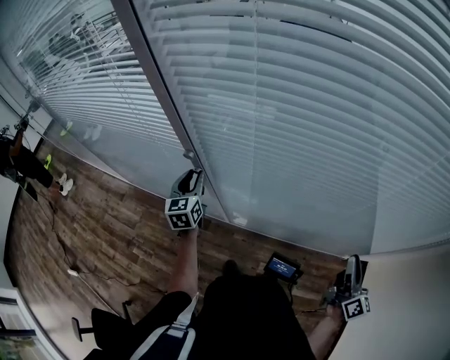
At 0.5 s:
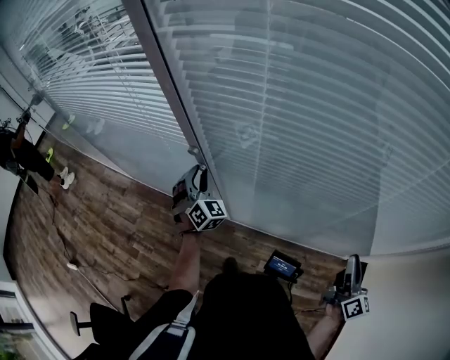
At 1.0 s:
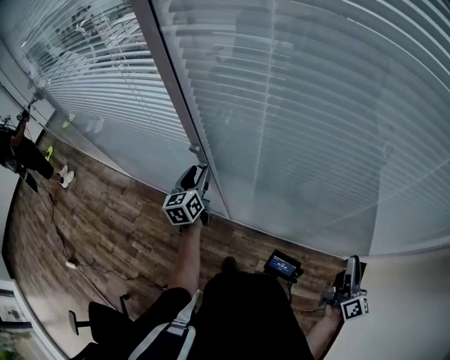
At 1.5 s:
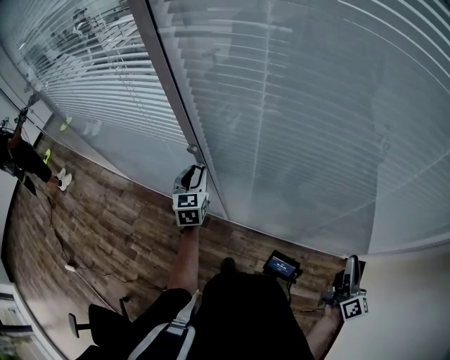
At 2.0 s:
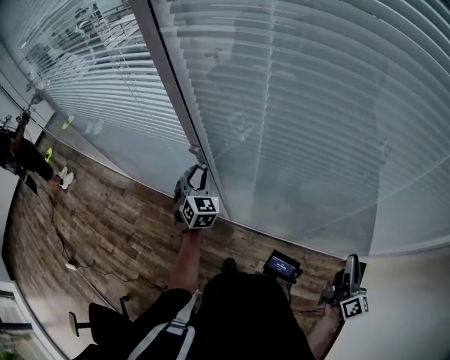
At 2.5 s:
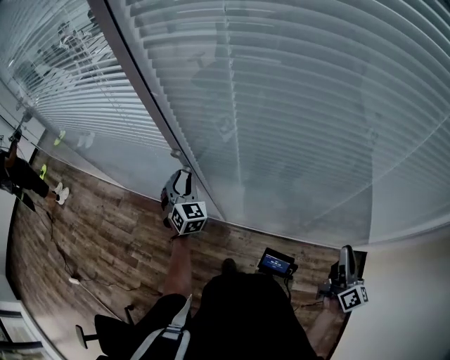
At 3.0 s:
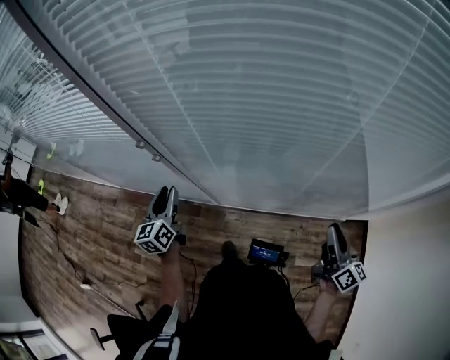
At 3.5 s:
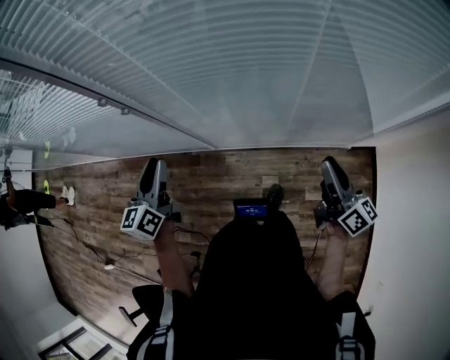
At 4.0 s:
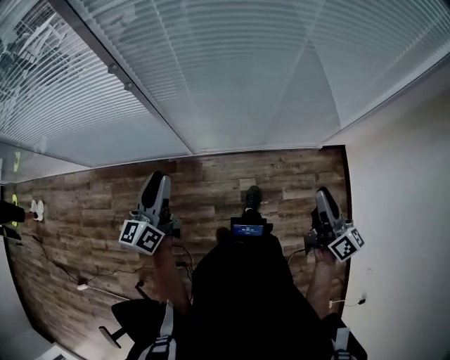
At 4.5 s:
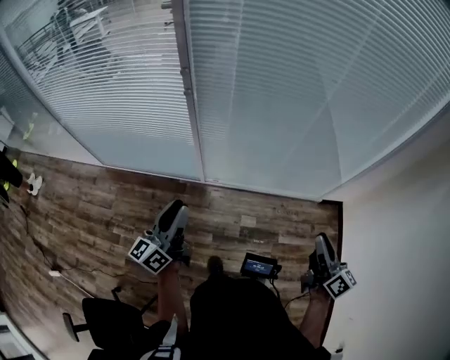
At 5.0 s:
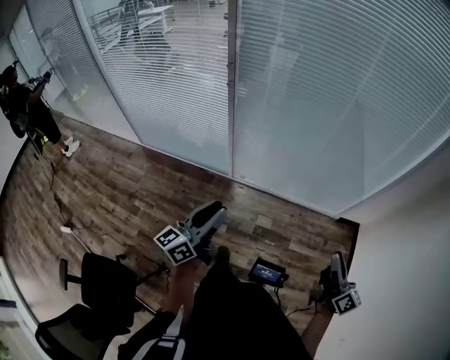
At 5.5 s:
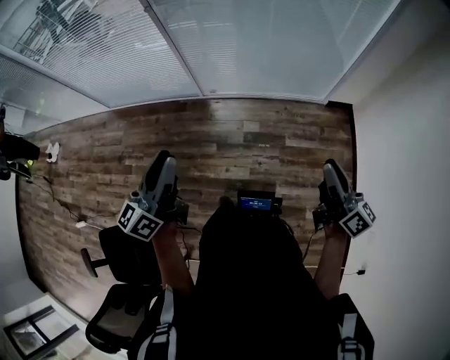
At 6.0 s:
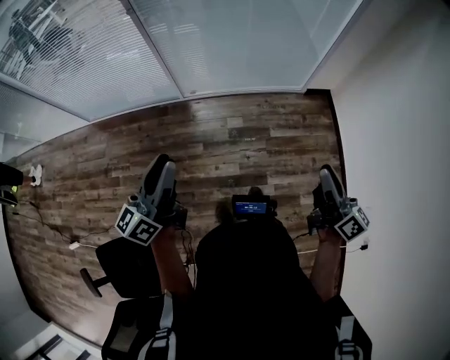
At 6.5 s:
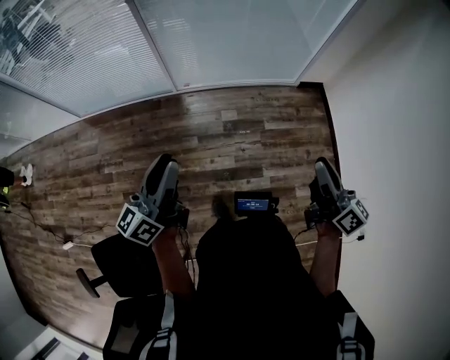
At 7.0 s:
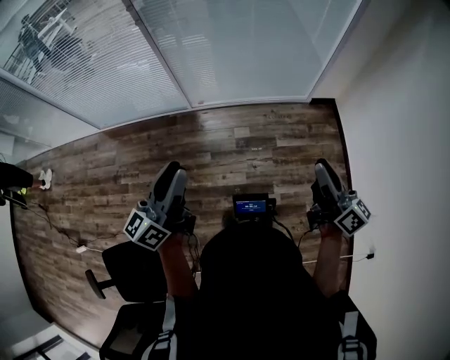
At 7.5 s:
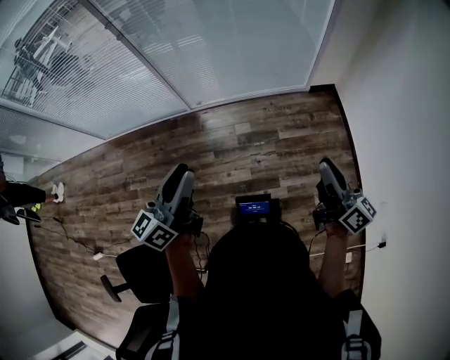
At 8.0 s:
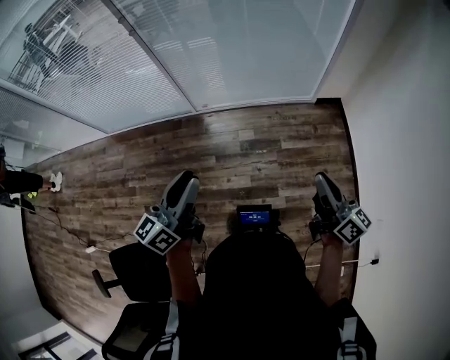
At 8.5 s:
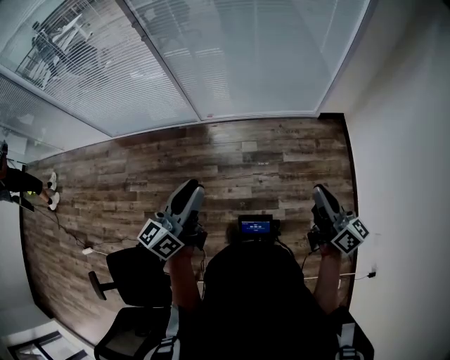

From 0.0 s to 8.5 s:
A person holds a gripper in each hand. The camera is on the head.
From 0.0 s to 2.0 s: The left gripper swivels about 40 degrees.
From 2.0 s to 4.0 s: The two grippers go roughly 25 cm backward. The left gripper rotates approximately 70 degrees.
From 4.0 s to 6.5 s: The two grippers go approximately 35 cm backward.
From 6.5 s to 8.5 s: The left gripper moves to the right, some 10 cm; the right gripper is displaced to the right by some 5 cm.

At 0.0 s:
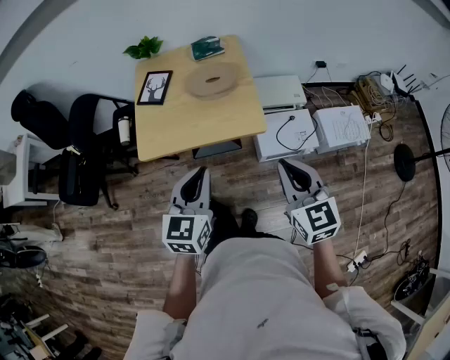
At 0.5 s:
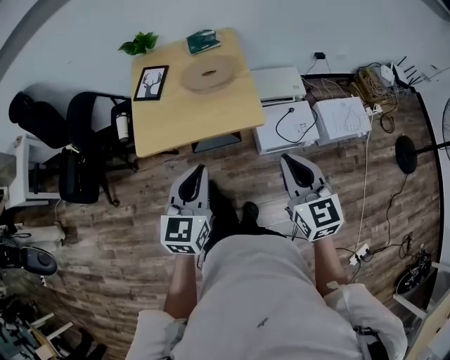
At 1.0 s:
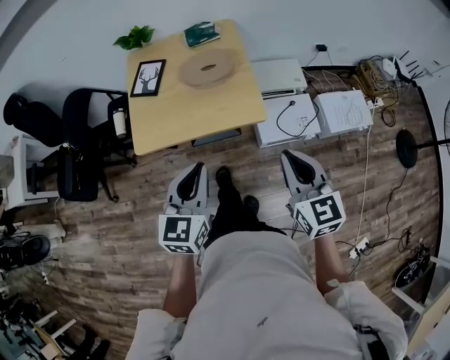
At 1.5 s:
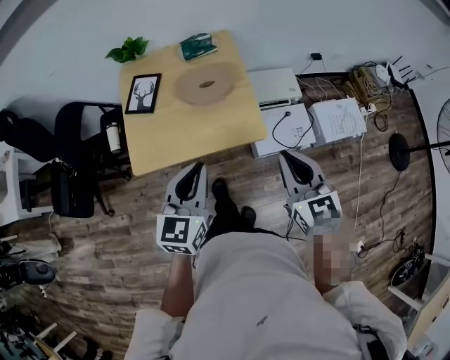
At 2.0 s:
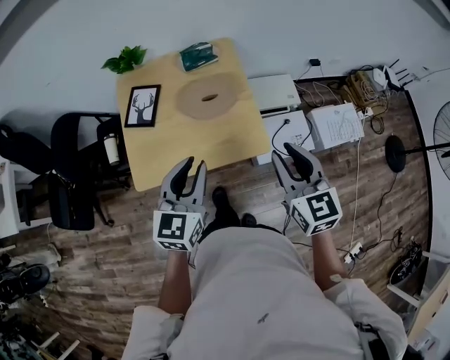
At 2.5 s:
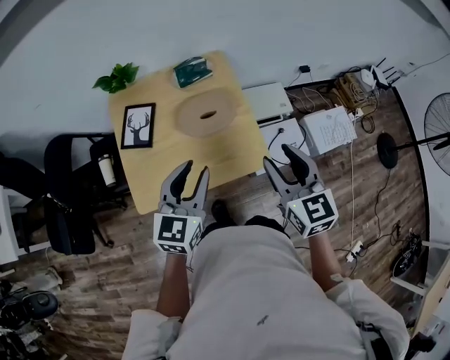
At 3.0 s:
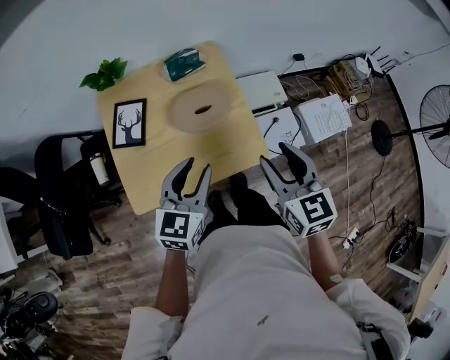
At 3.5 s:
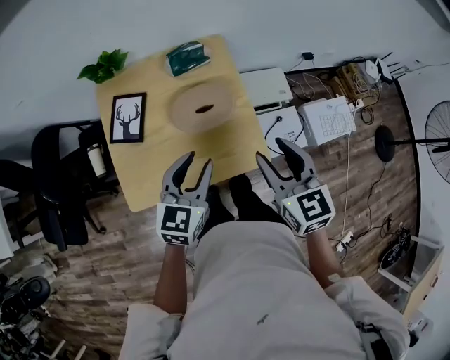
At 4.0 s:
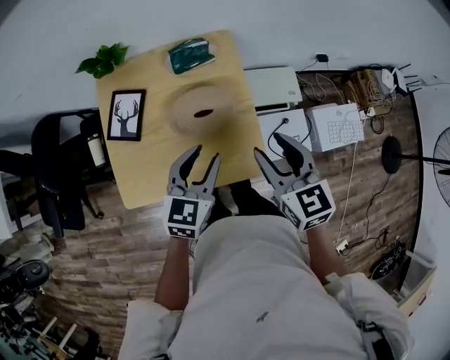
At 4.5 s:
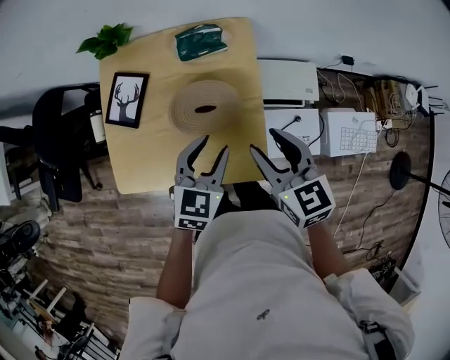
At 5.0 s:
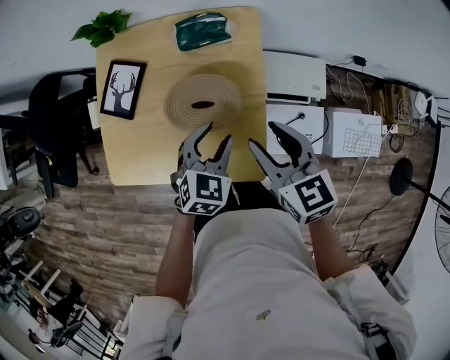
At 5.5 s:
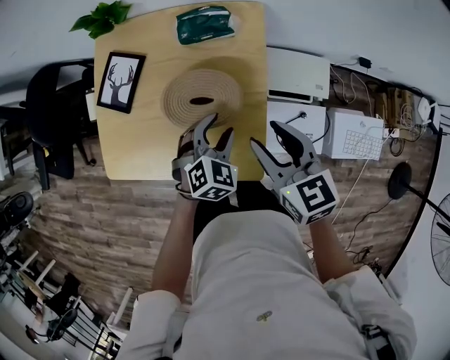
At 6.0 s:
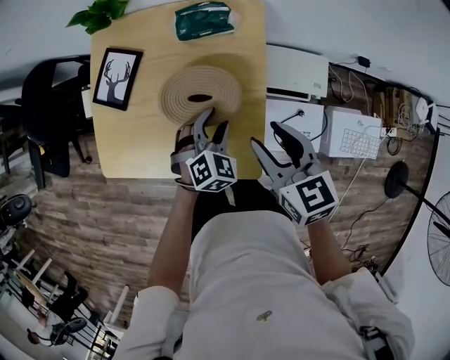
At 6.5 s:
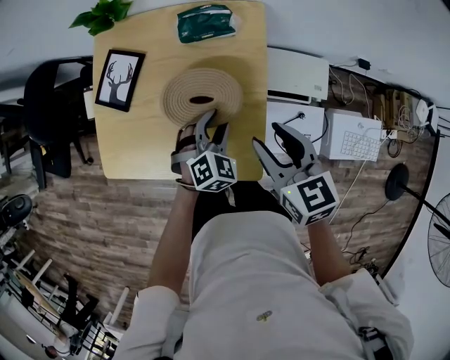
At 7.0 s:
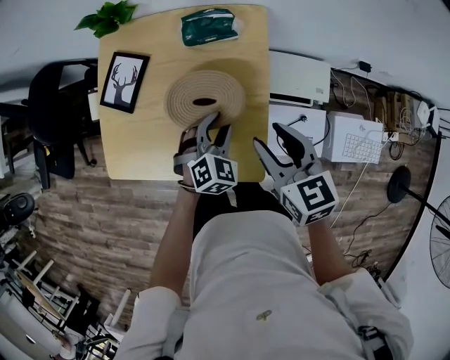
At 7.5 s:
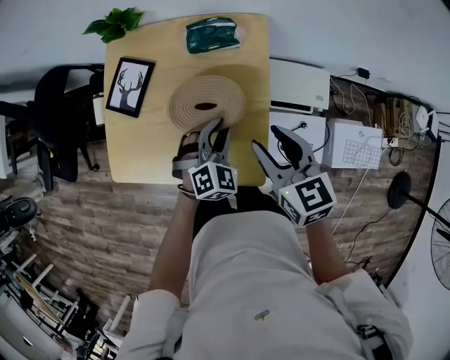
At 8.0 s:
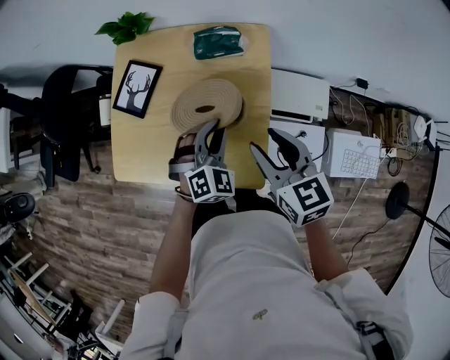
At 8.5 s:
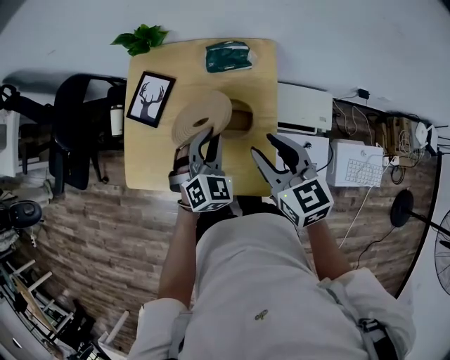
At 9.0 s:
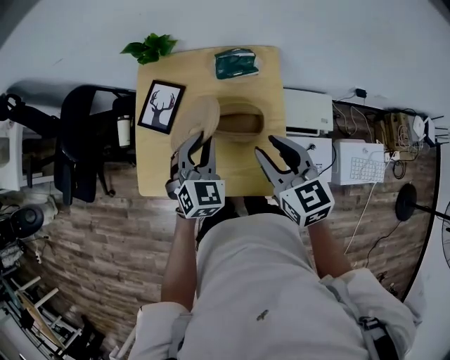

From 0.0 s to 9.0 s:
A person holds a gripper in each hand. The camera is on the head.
From 0.0 s to 2.0 s: The grippers both shift forward by about 20 cm. The right gripper opens its fingers.
From 2.0 s to 4.5 s: The two grippers go some 25 cm forward and downward. The left gripper opens; the right gripper rotates about 20 degrees, and opens its fingers.
From 4.5 s to 7.0 s: The left gripper shifts some 15 cm downward, and rotates about 30 degrees. The right gripper shifts by approximately 5 cm.
From 7.0 s to 9.0 s: The left gripper is displaced upward and to the left by about 20 cm. The right gripper moves upward and to the left, roughly 10 cm.

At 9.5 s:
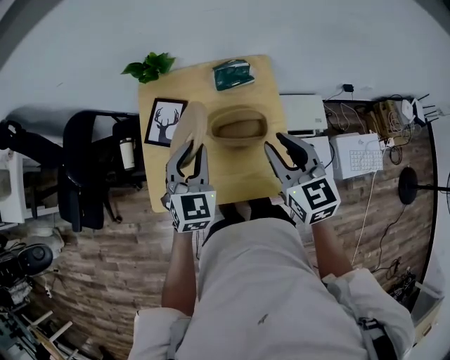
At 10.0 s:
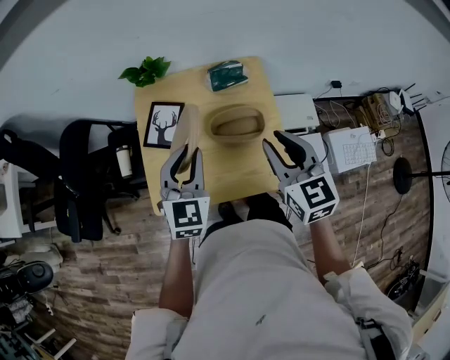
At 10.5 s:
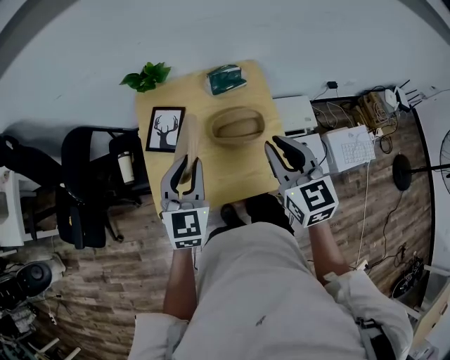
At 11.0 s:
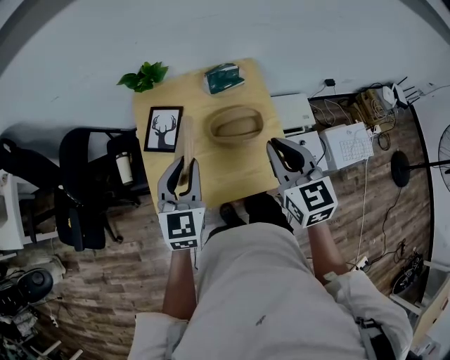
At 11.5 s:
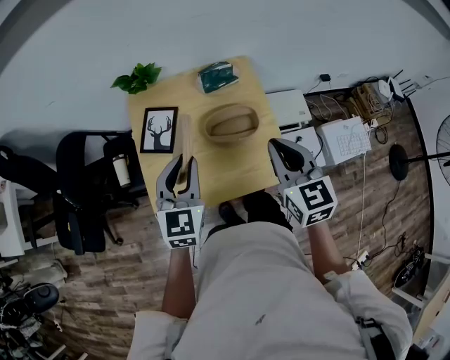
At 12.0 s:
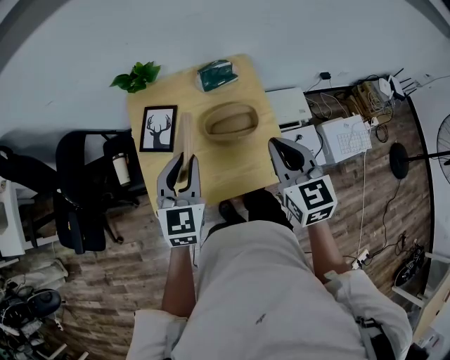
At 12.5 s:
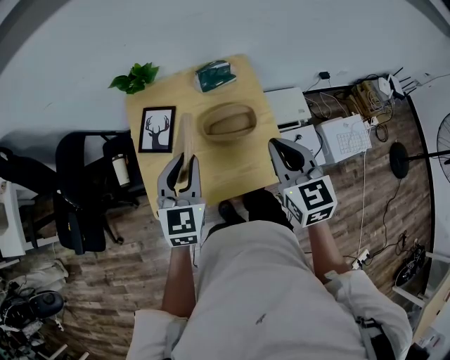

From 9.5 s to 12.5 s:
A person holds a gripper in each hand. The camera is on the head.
From 9.5 s to 11.0 s: The left gripper is displaced backward and to the left by some 5 cm; the right gripper ends up roughly 5 cm from where it was, and closes up.
From 11.0 s to 12.5 s: The grippers stay close to where they were, moving slightly.

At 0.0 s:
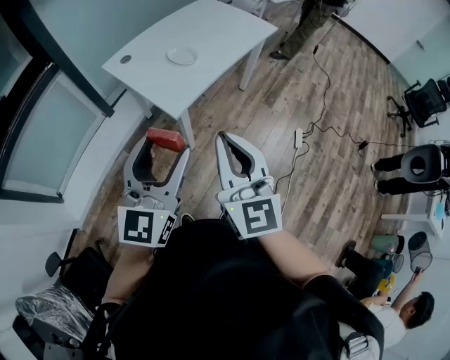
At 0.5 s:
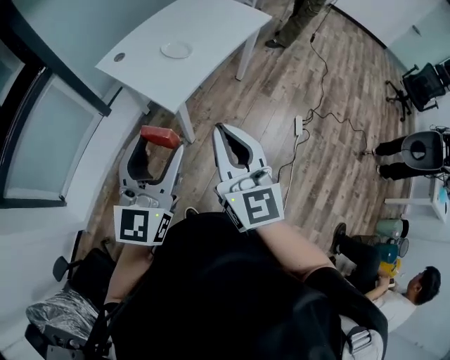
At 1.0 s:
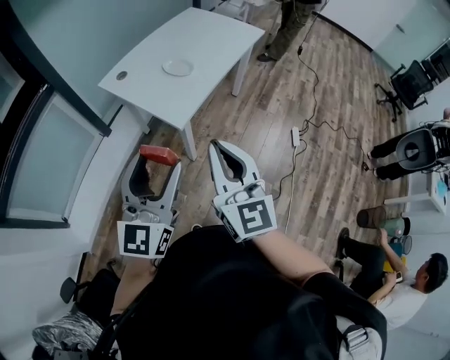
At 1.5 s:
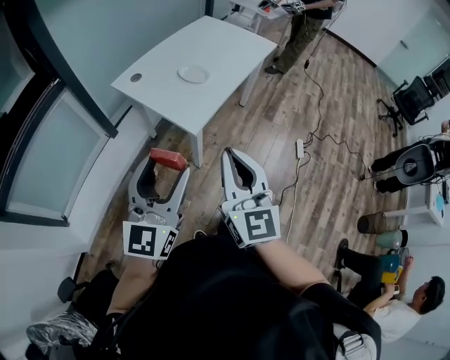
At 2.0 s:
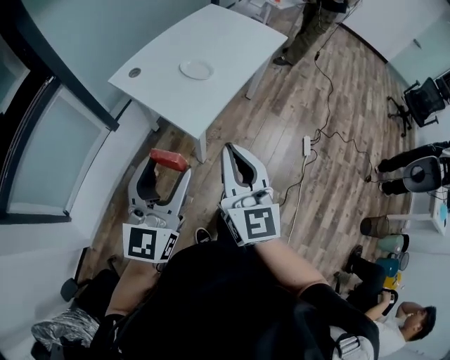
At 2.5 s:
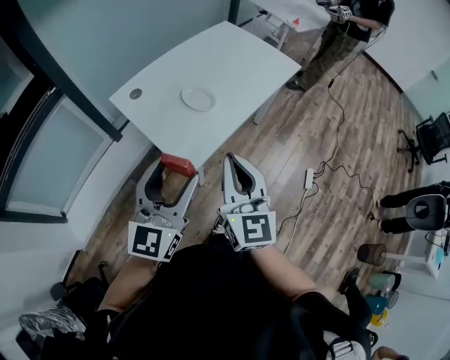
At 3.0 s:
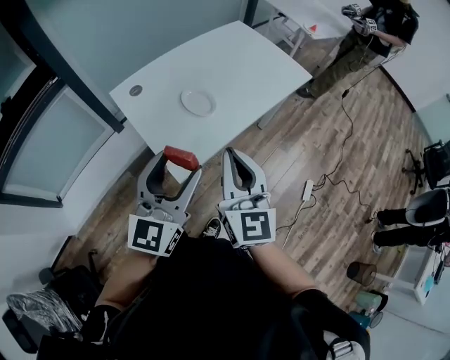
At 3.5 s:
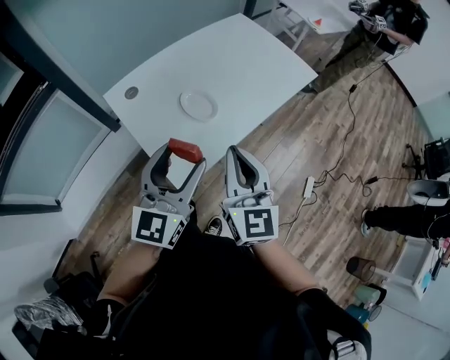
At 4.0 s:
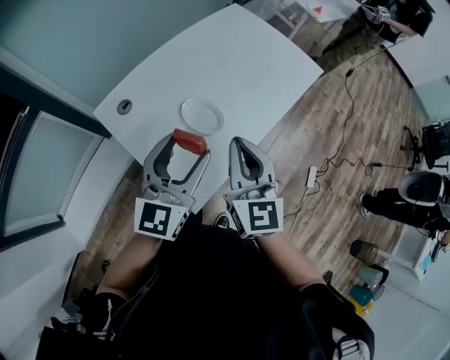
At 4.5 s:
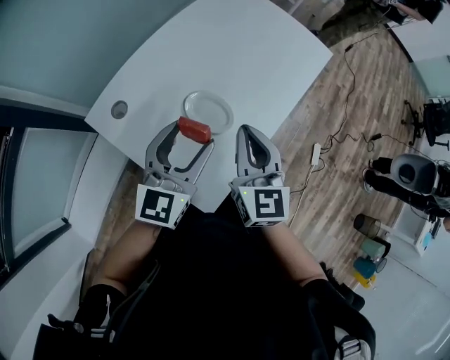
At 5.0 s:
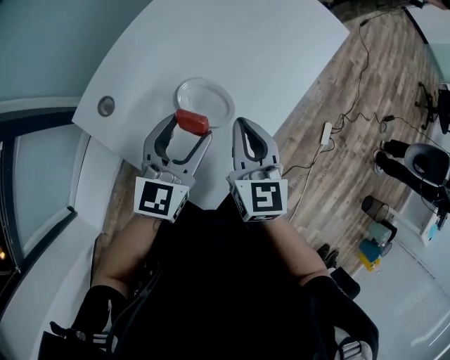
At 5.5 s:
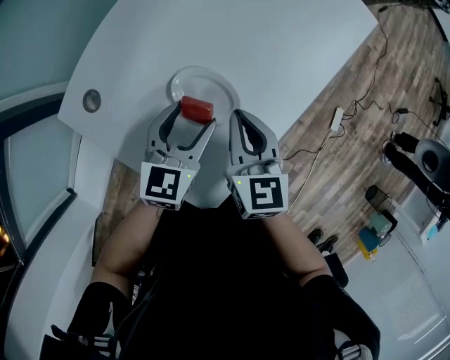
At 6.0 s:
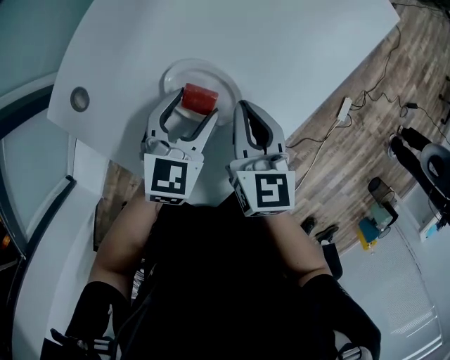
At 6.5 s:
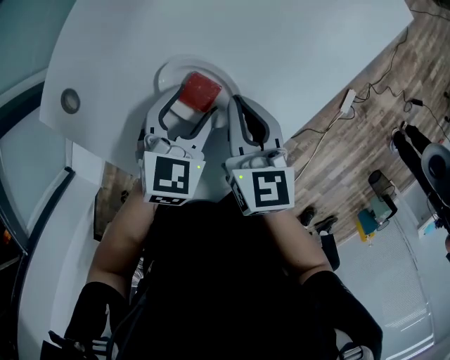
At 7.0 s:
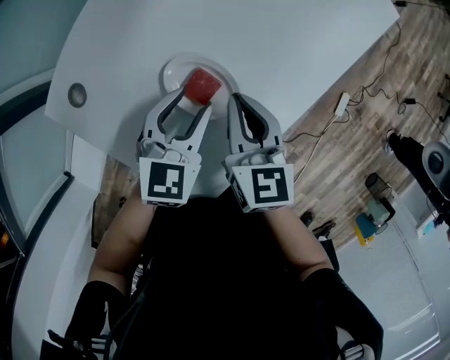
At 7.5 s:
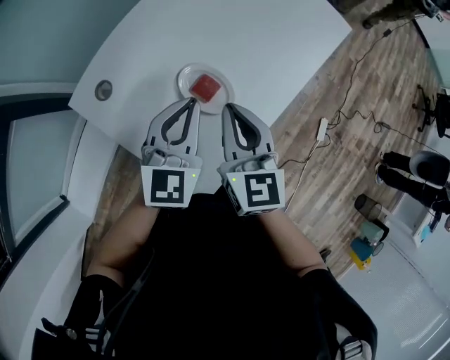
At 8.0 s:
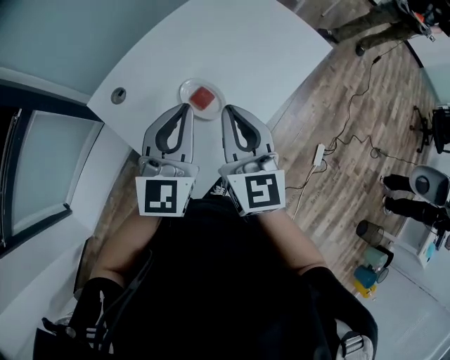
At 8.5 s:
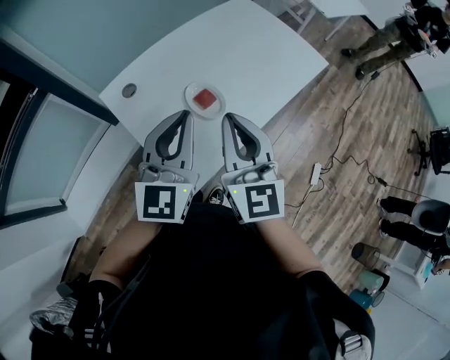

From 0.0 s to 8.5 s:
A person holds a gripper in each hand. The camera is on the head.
From 0.0 s to 2.0 s: The right gripper goes roughly 10 cm to the left and forward. The left gripper shifts roughly 10 cm to the left.
From 2.0 s to 4.0 s: The grippers both shift forward by about 35 cm.
From 4.0 s to 6.5 s: The two grippers go roughly 25 cm downward and forward. The right gripper swivels some 30 degrees. Meanwhile the left gripper tilts its fingers some 40 degrees downward.
From 6.5 s to 8.5 s: Both grippers travel together upward and backward, some 30 cm. The right gripper points its fingers about 30 degrees further upward; the left gripper tips its fingers upward by about 40 degrees, and closes its fingers.
